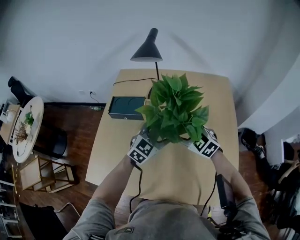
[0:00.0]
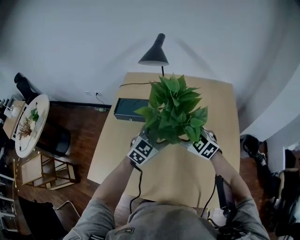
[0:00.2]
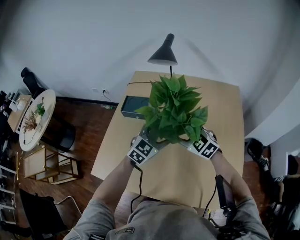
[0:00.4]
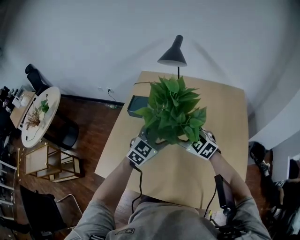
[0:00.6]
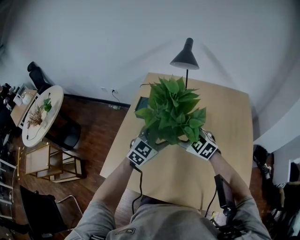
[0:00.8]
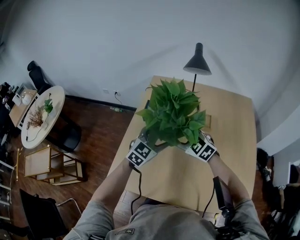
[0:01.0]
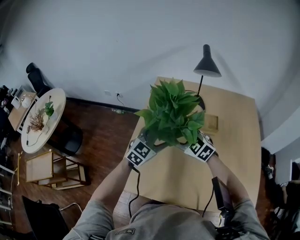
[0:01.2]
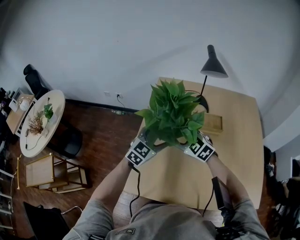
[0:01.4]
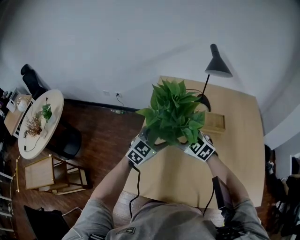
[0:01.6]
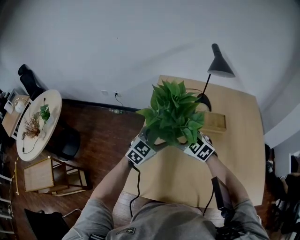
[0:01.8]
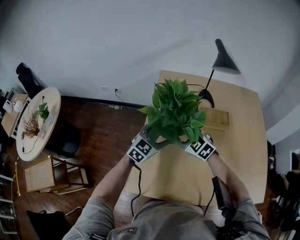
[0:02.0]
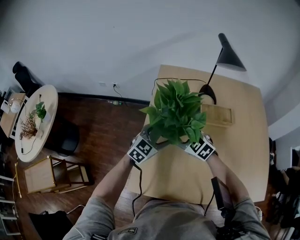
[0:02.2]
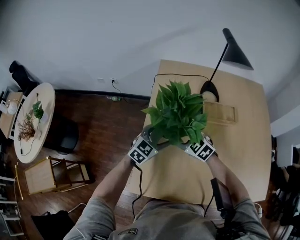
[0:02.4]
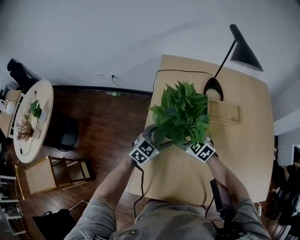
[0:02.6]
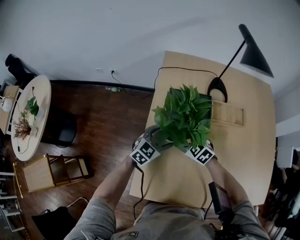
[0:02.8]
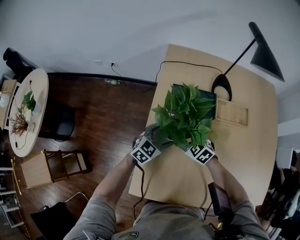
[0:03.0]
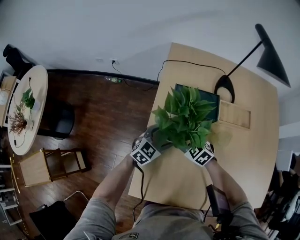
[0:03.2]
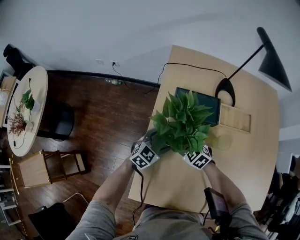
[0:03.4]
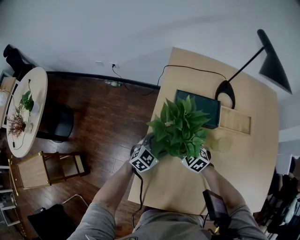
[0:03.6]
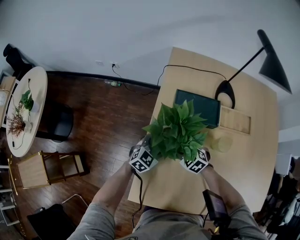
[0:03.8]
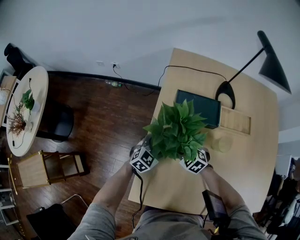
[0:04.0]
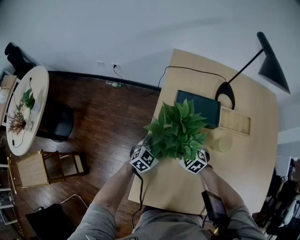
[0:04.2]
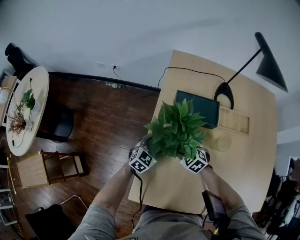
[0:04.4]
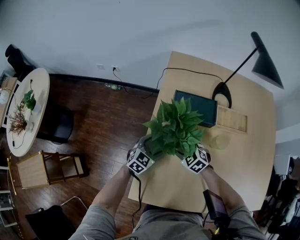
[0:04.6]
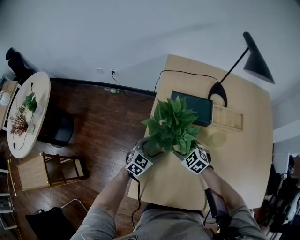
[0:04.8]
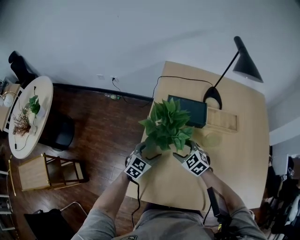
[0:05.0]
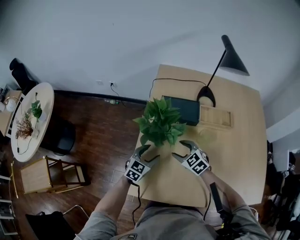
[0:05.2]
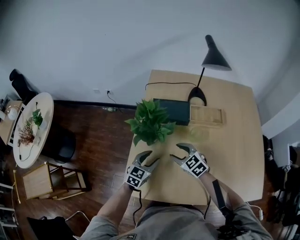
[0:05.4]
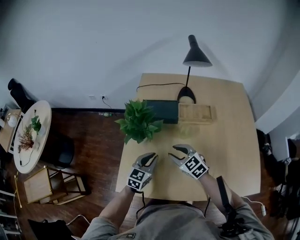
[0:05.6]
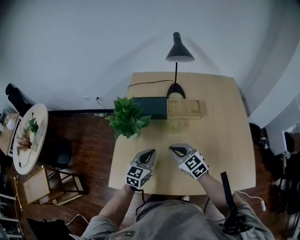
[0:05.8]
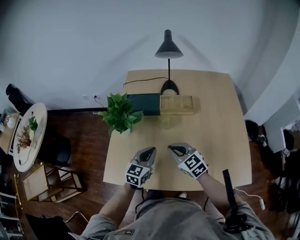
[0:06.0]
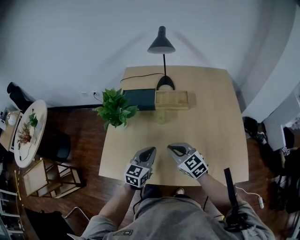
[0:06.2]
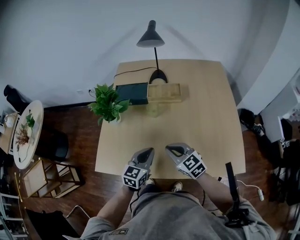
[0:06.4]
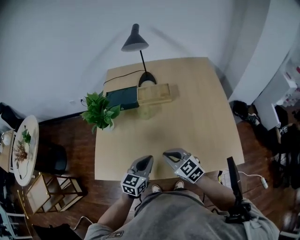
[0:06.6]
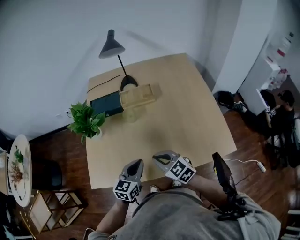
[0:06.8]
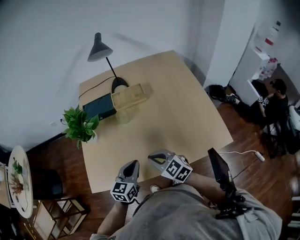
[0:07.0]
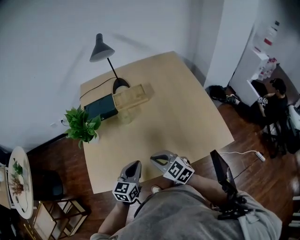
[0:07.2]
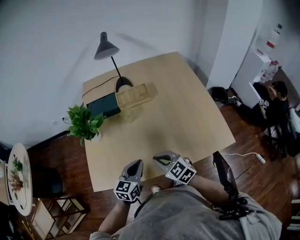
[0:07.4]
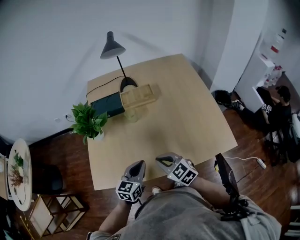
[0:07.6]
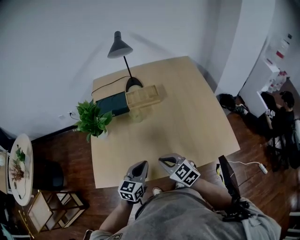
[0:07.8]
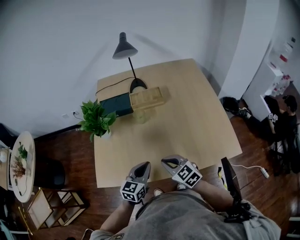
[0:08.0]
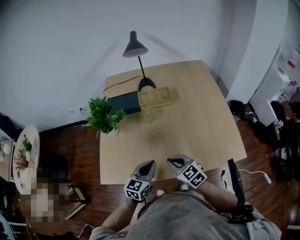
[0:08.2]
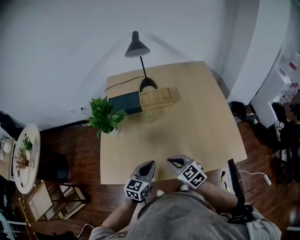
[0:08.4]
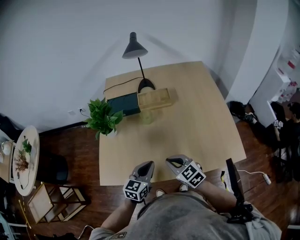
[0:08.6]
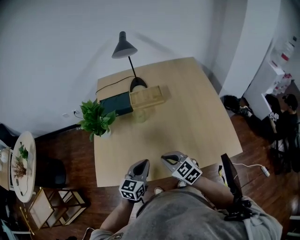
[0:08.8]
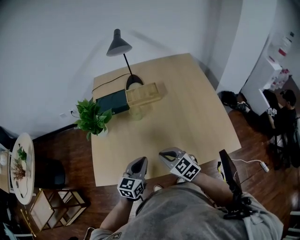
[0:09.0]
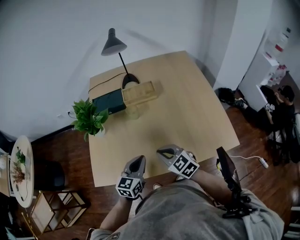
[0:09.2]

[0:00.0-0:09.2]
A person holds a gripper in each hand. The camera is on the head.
0:00.0 to 0:01.6: The two grippers go roughly 30 cm to the left.
0:01.6 to 0:03.0: Both grippers travel together downward, roughly 15 cm.
0:03.0 to 0:04.6: The left gripper heads to the left, covering about 5 cm.
0:04.6 to 0:06.2: Both grippers travel together to the right, backward and upward, about 35 cm. The right gripper swivels some 30 degrees, and closes; the left gripper rotates some 20 degrees, and closes its fingers.
0:06.2 to 0:07.6: Both grippers move backward, roughly 10 cm.
0:07.6 to 0:09.2: The grippers stay close to where they were, moving slightly.

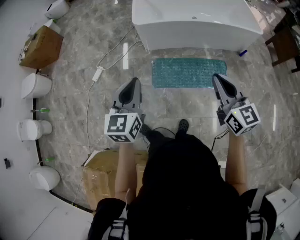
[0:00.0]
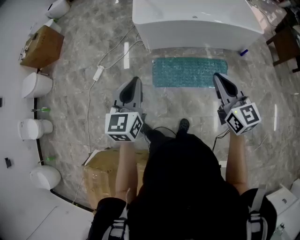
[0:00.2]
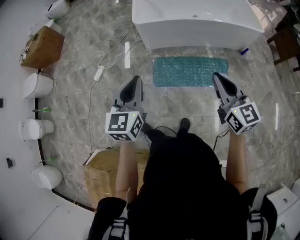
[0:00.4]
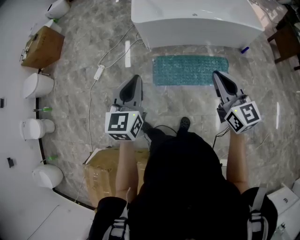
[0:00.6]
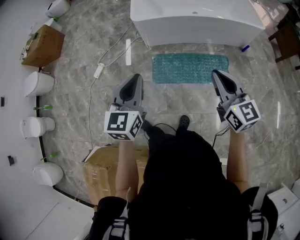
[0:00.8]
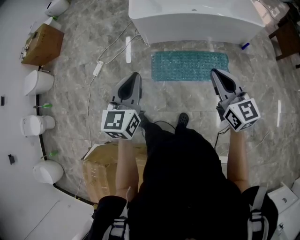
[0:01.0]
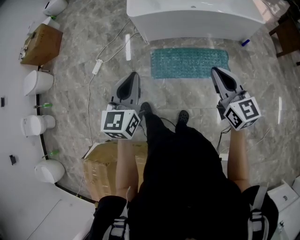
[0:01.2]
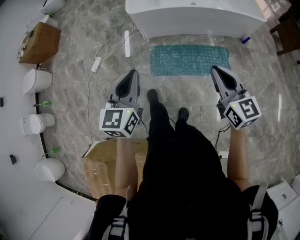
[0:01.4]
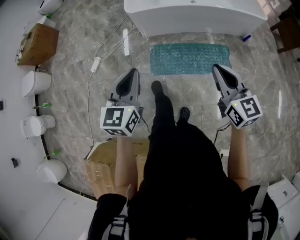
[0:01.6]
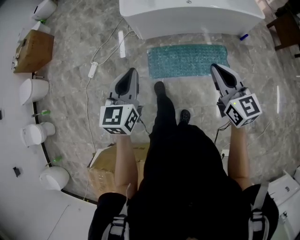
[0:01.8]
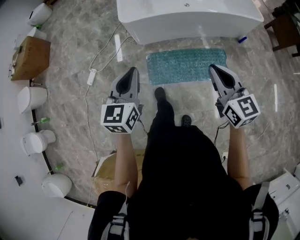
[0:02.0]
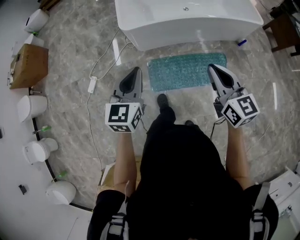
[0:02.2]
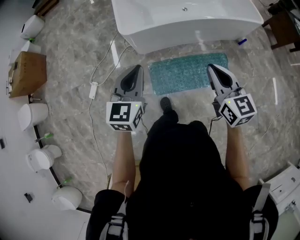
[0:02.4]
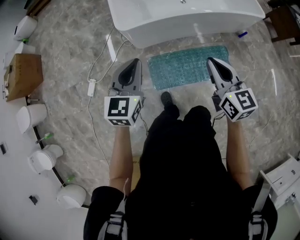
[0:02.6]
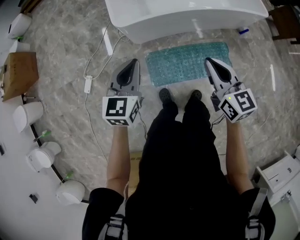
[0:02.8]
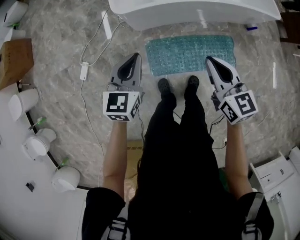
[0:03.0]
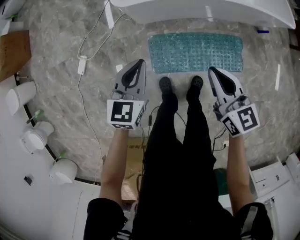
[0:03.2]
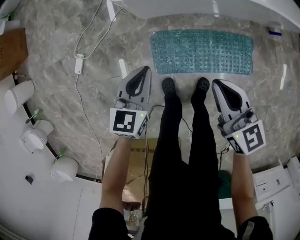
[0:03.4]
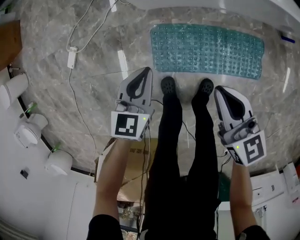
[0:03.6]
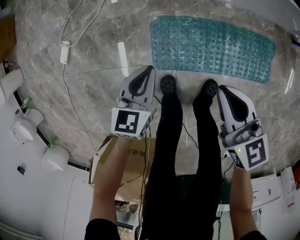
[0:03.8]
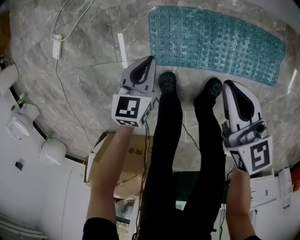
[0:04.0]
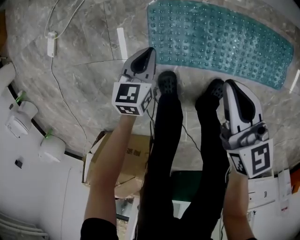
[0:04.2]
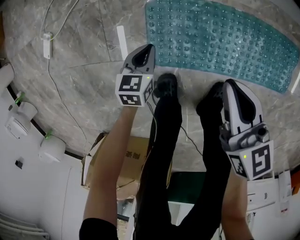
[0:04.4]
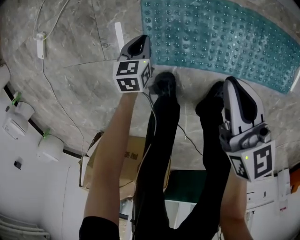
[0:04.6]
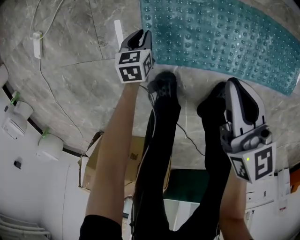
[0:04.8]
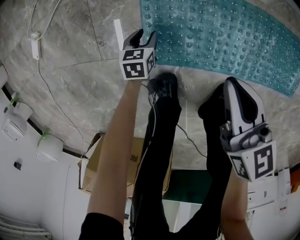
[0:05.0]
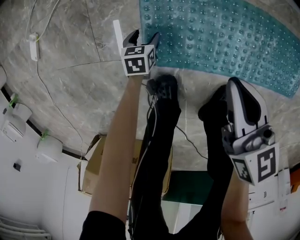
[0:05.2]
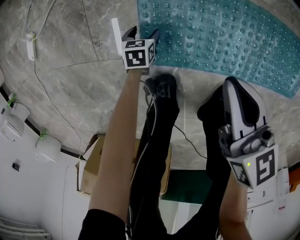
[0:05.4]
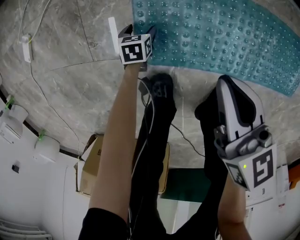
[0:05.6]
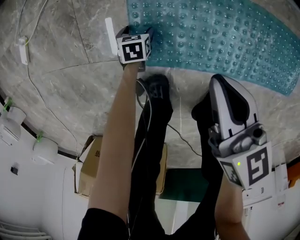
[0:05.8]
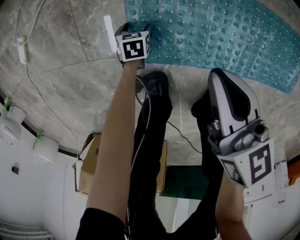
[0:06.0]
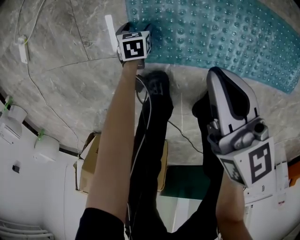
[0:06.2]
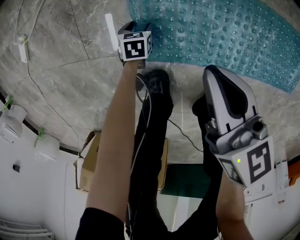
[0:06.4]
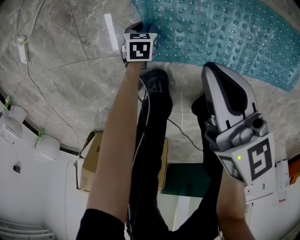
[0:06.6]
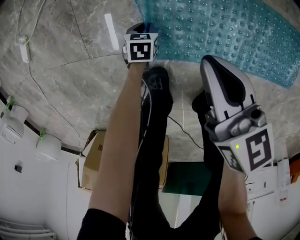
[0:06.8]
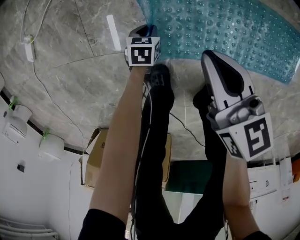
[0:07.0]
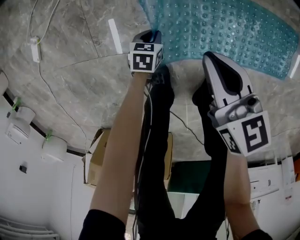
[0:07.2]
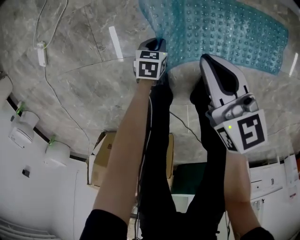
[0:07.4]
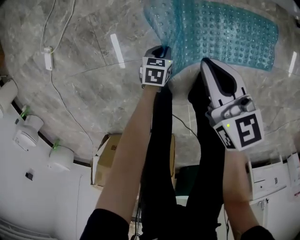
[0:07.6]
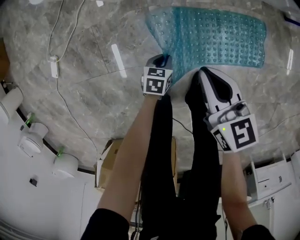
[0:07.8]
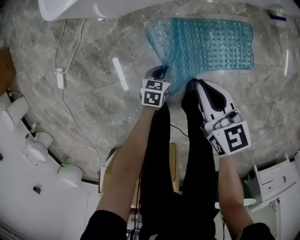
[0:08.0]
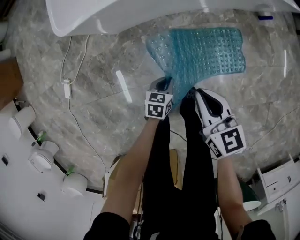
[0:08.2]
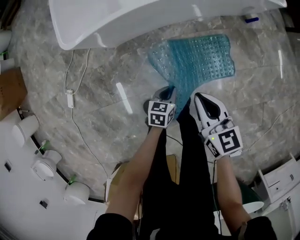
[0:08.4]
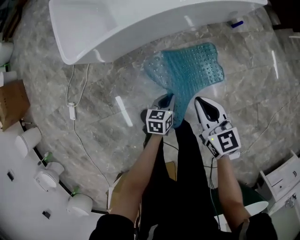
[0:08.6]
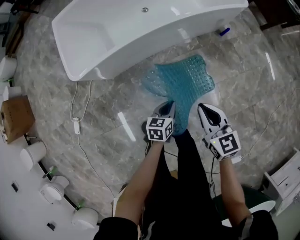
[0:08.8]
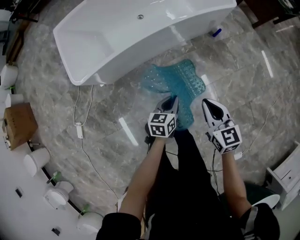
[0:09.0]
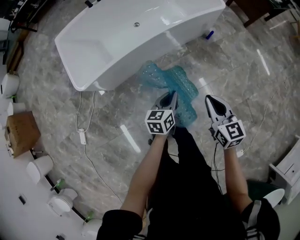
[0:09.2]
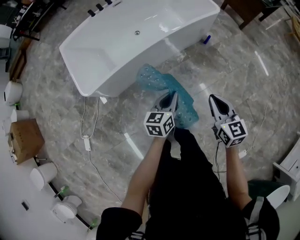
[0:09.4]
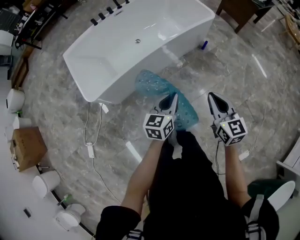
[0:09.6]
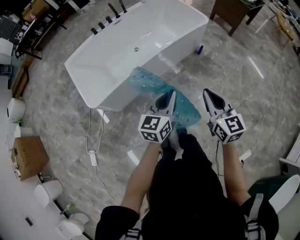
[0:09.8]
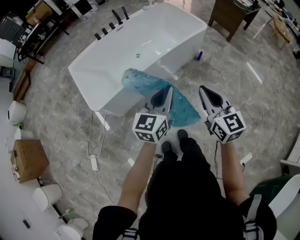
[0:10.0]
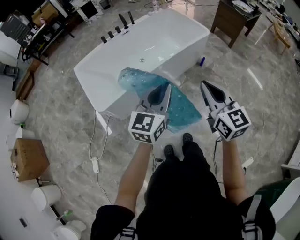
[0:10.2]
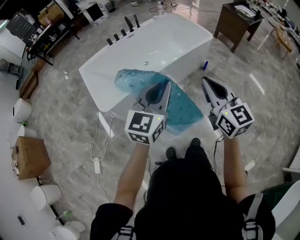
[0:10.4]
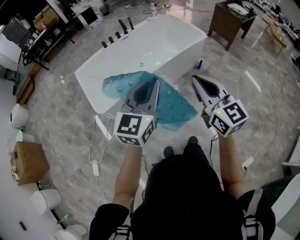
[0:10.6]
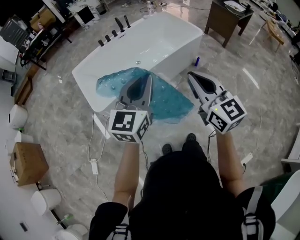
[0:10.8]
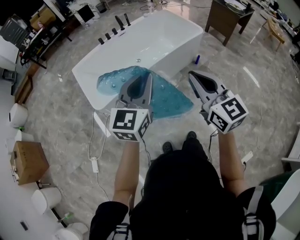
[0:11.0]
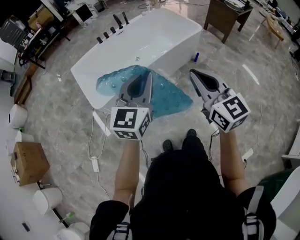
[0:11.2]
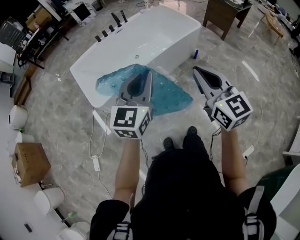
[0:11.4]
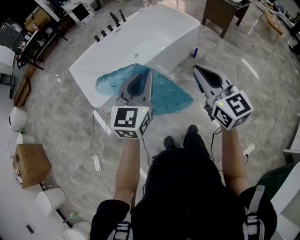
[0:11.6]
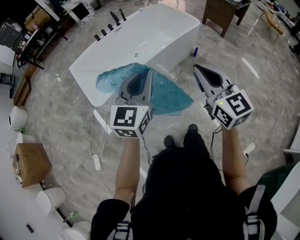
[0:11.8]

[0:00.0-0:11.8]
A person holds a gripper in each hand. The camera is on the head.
0:00.0 to 0:01.4: The left gripper goes some 5 cm to the right; the right gripper moves some 5 cm.
0:01.4 to 0:03.0: The right gripper is displaced forward and to the left by some 35 cm. The left gripper heads forward, covering about 40 cm.
0:03.0 to 0:04.4: Both grippers move downward, roughly 60 cm. The left gripper swivels roughly 30 degrees.
0:04.4 to 0:06.0: The left gripper shifts roughly 25 cm downward, rotates approximately 20 degrees, and opens. Meanwhile the right gripper shifts about 10 cm downward.
0:06.0 to 0:07.4: The right gripper heads upward, covering about 10 cm. The left gripper shifts approximately 20 cm upward and to the right, and closes.
0:07.4 to 0:08.8: The two grippers go approximately 60 cm upward and to the right. The left gripper turns by approximately 30 degrees; the right gripper changes its angle by roughly 30 degrees.
0:08.8 to 0:10.4: The two grippers go roughly 40 cm upward. The left gripper tilts its fingers about 40 degrees upward; the right gripper rotates some 30 degrees.
0:10.4 to 0:11.8: The right gripper is displaced backward by approximately 5 cm.

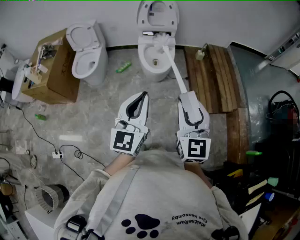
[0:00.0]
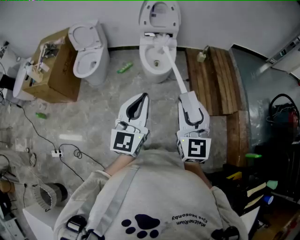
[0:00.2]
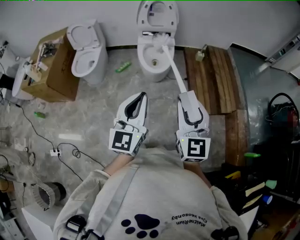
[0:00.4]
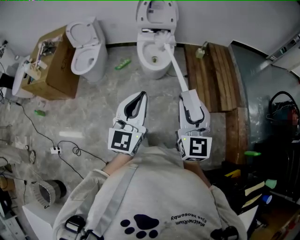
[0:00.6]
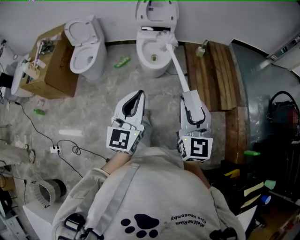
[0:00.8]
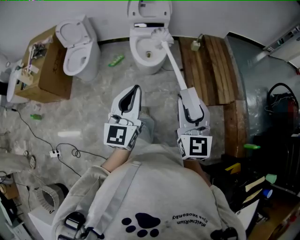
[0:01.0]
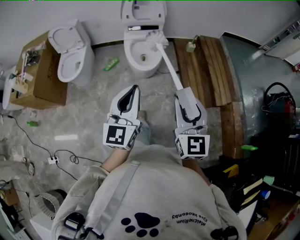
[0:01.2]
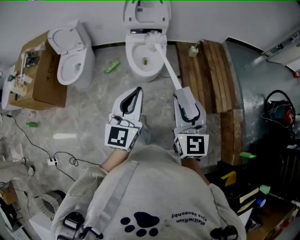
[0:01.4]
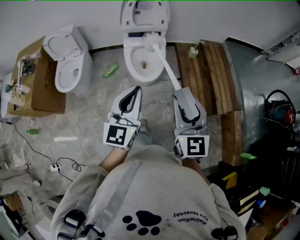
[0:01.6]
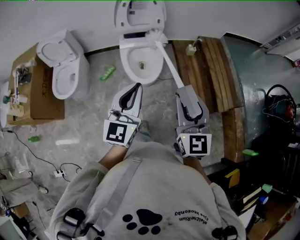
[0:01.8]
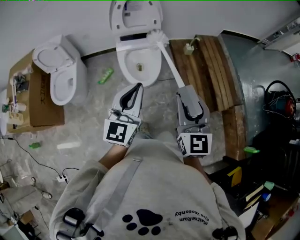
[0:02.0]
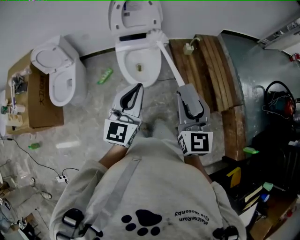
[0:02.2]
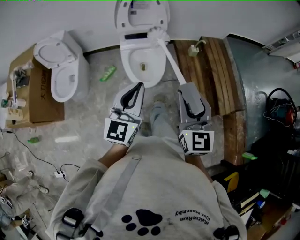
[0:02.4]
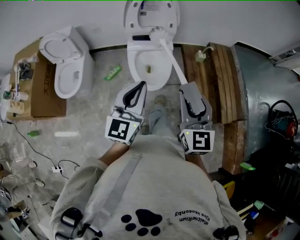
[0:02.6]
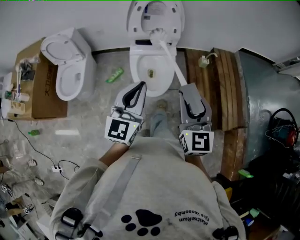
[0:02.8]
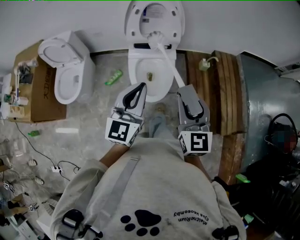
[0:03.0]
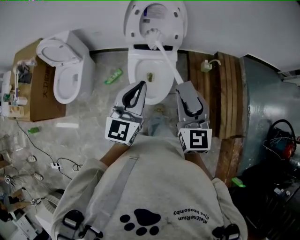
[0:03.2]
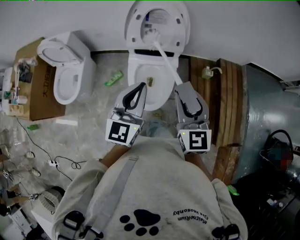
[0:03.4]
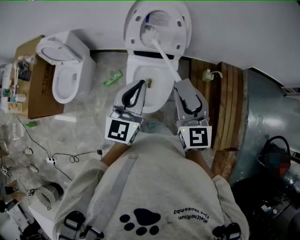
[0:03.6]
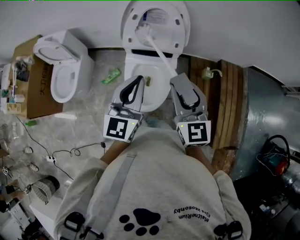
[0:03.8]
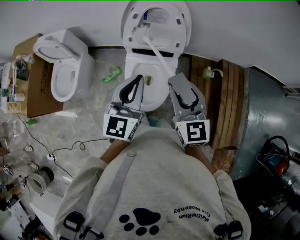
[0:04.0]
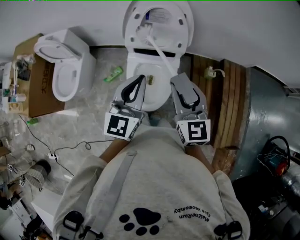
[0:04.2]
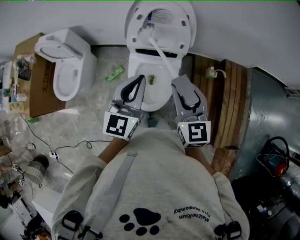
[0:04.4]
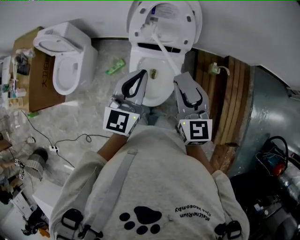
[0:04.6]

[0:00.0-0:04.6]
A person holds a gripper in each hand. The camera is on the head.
0:00.0 to 0:01.6: The two grippers go about 20 cm forward.
0:01.6 to 0:03.0: The grippers both shift forward by approximately 25 cm.
0:03.0 to 0:04.6: Both grippers move forward, some 20 cm.
